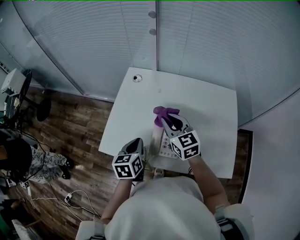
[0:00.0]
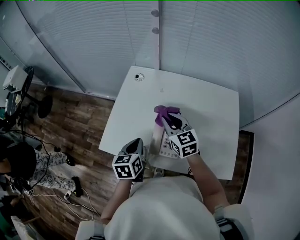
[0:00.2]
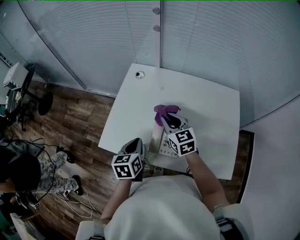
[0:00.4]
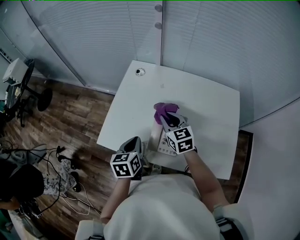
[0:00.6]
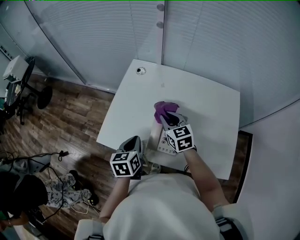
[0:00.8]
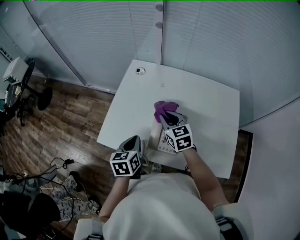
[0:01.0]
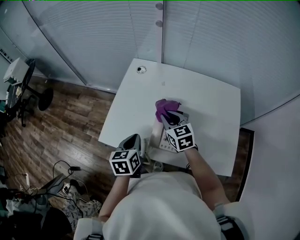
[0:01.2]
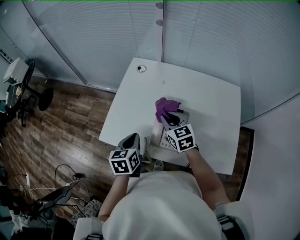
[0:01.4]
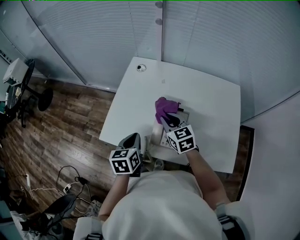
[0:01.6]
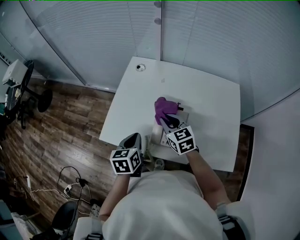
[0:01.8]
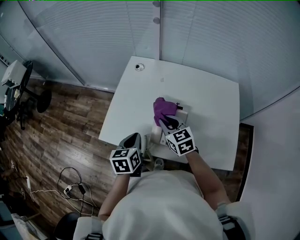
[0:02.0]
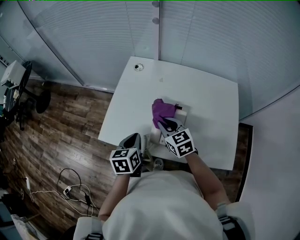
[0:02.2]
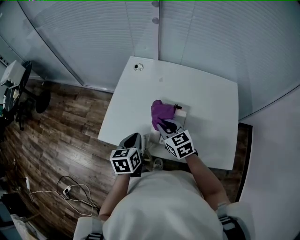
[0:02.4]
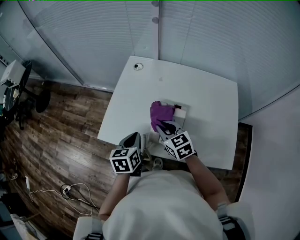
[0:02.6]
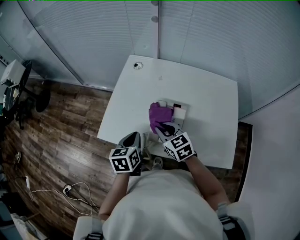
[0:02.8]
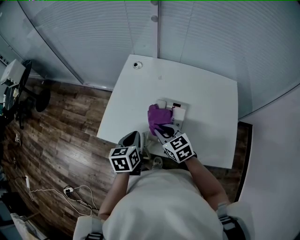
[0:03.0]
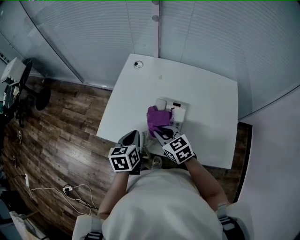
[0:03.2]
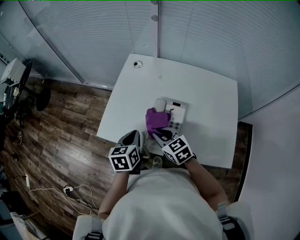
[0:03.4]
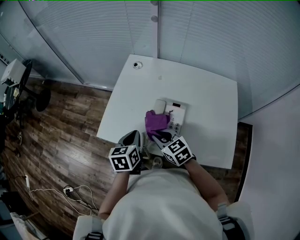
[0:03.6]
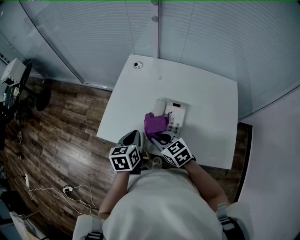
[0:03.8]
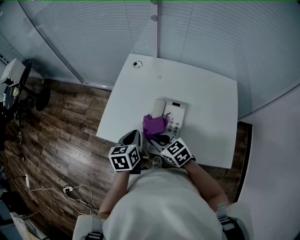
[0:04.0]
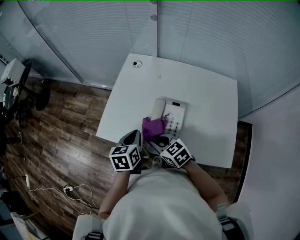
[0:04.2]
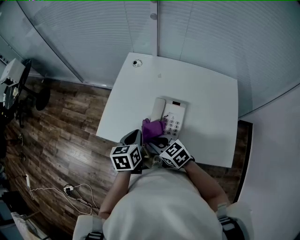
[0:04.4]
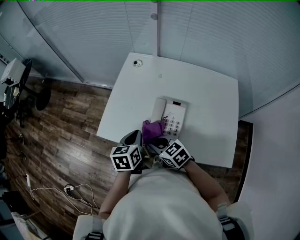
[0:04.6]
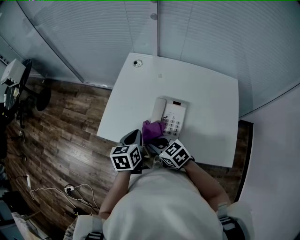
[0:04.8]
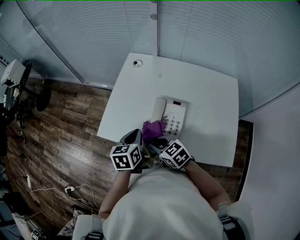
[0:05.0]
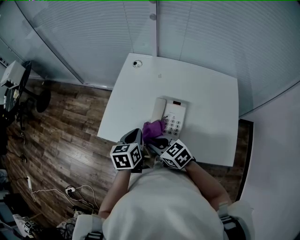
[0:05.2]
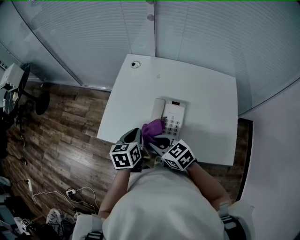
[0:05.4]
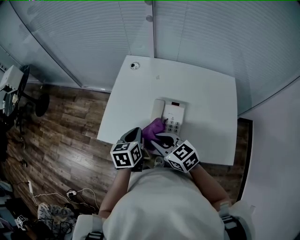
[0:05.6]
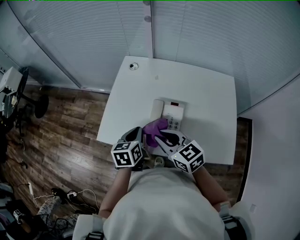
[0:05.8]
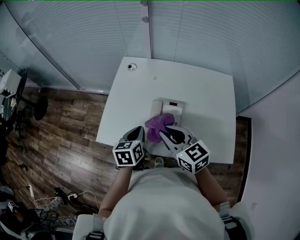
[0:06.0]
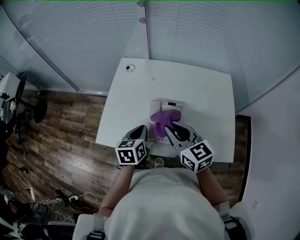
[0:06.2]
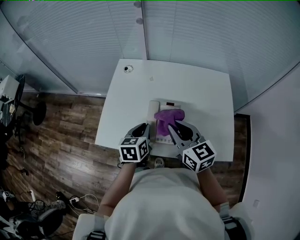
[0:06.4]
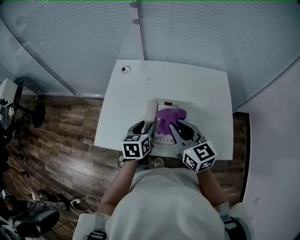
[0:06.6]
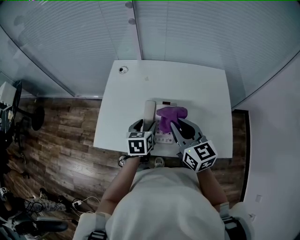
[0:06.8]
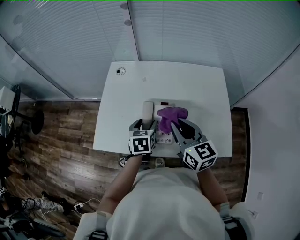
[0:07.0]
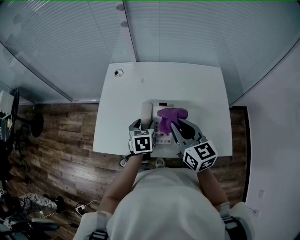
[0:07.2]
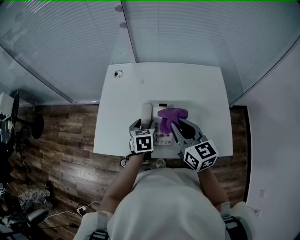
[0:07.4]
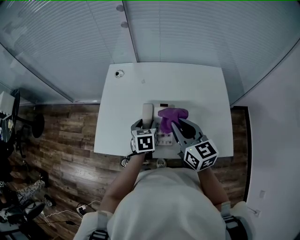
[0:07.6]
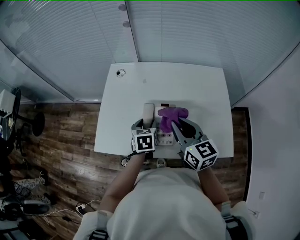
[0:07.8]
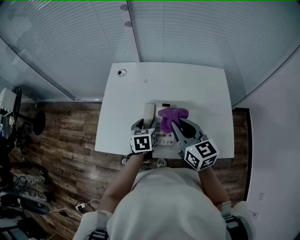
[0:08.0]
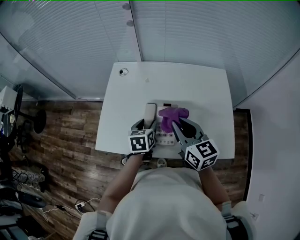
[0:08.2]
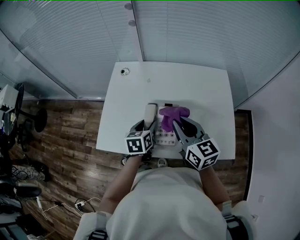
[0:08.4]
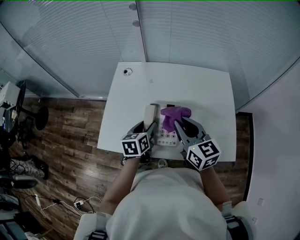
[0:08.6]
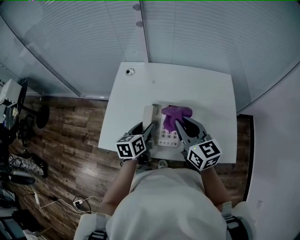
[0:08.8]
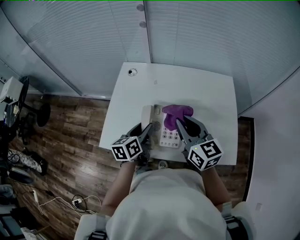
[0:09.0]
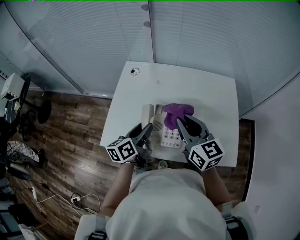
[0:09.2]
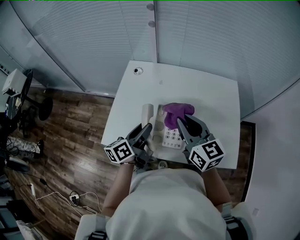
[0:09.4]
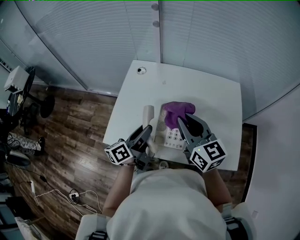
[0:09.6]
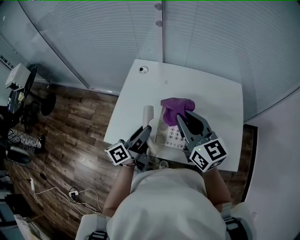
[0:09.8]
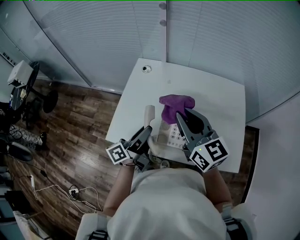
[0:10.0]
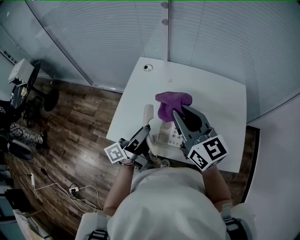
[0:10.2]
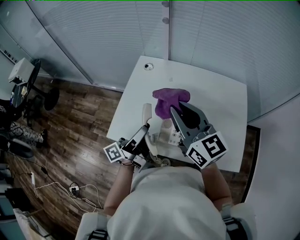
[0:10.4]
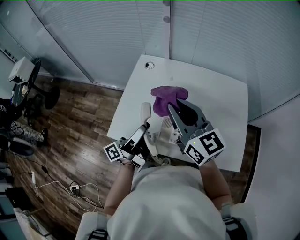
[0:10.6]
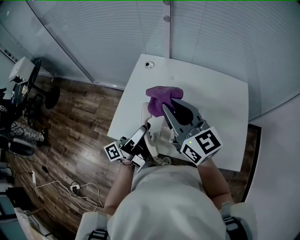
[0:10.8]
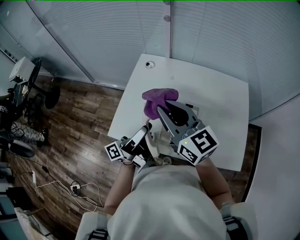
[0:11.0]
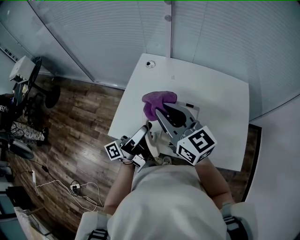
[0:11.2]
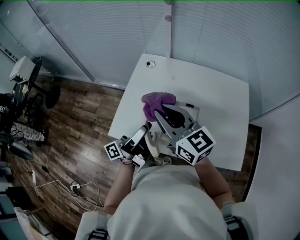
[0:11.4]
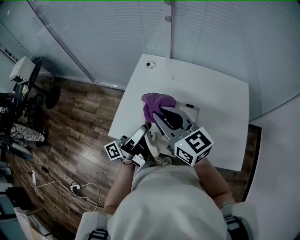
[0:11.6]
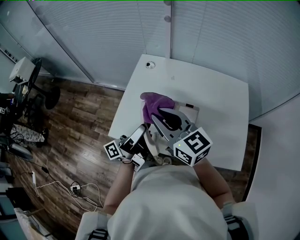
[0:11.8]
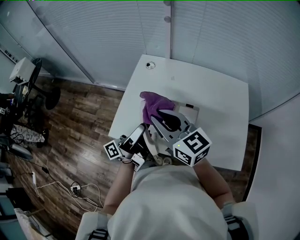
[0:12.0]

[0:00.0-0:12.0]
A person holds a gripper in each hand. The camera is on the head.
0:00.0 to 0:01.6: The right gripper heads downward, covering approximately 5 cm.
0:01.6 to 0:03.0: The right gripper goes roughly 5 cm backward.
0:03.0 to 0:04.4: The right gripper is displaced backward by some 5 cm.
0:04.4 to 0:06.0: The right gripper shifts roughly 15 cm upward and to the right, and swivels roughly 30 degrees.
0:06.0 to 0:07.6: The right gripper heads to the right, covering approximately 10 cm, and changes its angle by some 20 degrees. Meanwhile the left gripper is displaced to the right and forward by some 10 cm, and opens up.
0:07.6 to 0:09.0: The left gripper travels upward by approximately 5 cm, and rotates some 30 degrees.
0:09.0 to 0:10.4: The right gripper is displaced upward and to the left by some 10 cm; the left gripper is displaced upward by about 5 cm, and angles its fingers upward, by approximately 40 degrees.
0:10.4 to 0:12.0: The right gripper is displaced to the left by about 5 cm.

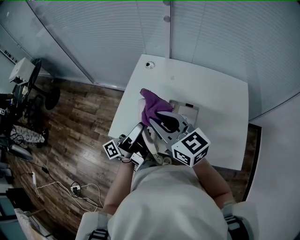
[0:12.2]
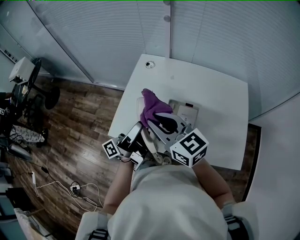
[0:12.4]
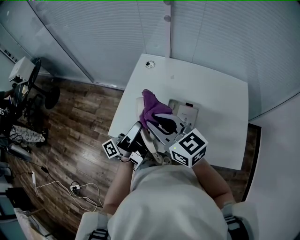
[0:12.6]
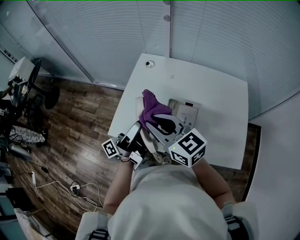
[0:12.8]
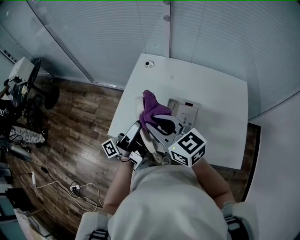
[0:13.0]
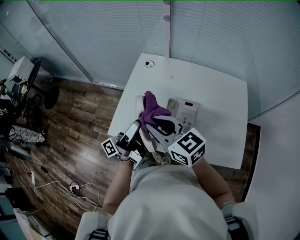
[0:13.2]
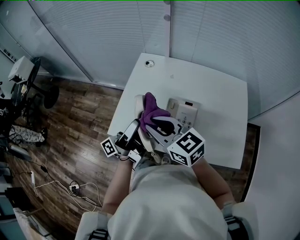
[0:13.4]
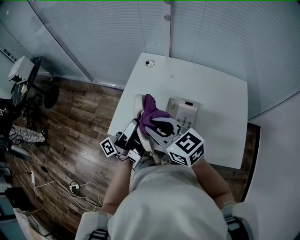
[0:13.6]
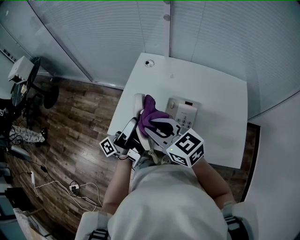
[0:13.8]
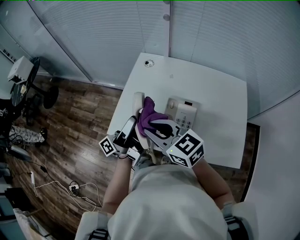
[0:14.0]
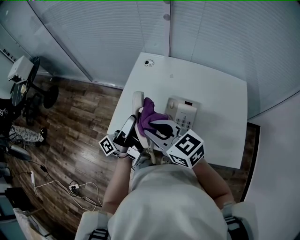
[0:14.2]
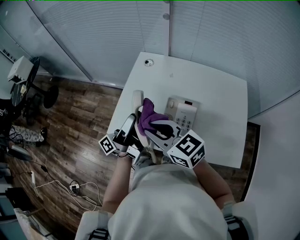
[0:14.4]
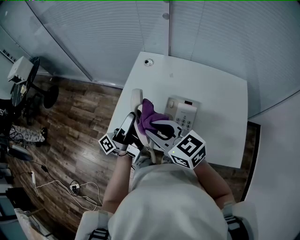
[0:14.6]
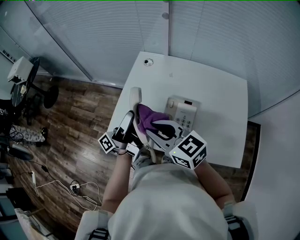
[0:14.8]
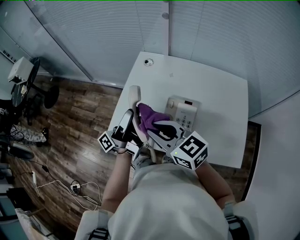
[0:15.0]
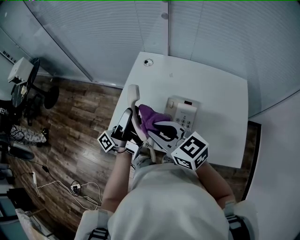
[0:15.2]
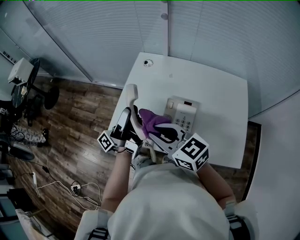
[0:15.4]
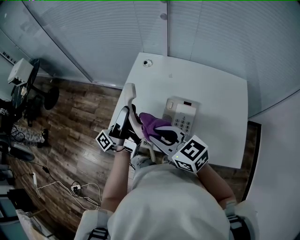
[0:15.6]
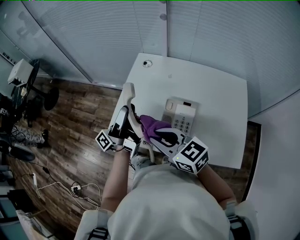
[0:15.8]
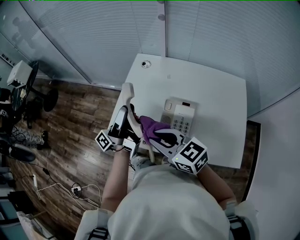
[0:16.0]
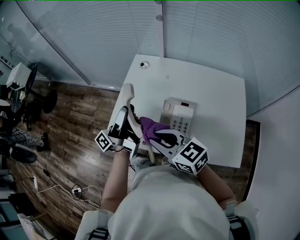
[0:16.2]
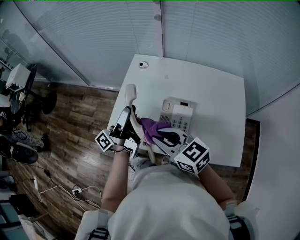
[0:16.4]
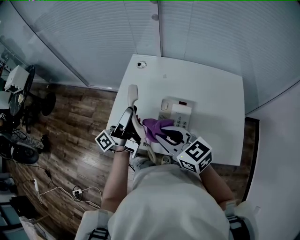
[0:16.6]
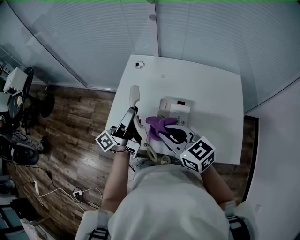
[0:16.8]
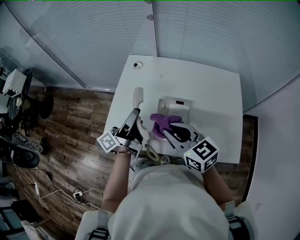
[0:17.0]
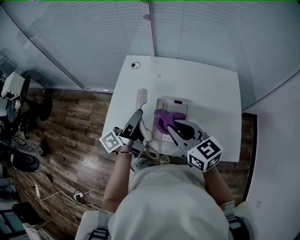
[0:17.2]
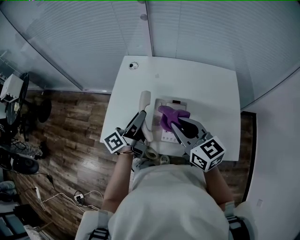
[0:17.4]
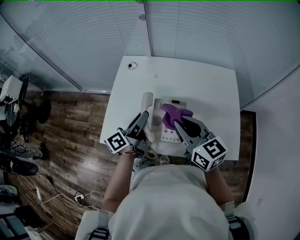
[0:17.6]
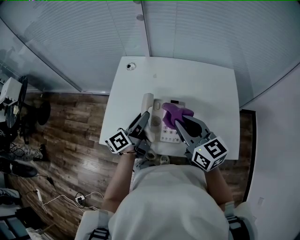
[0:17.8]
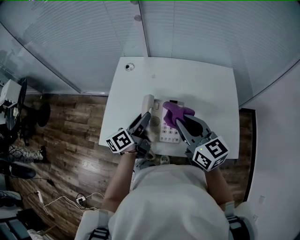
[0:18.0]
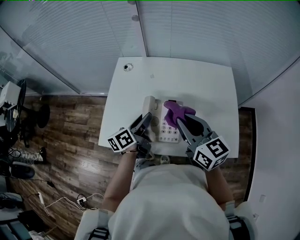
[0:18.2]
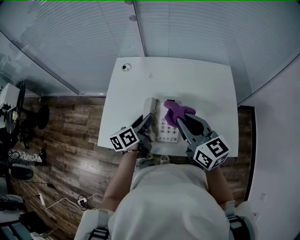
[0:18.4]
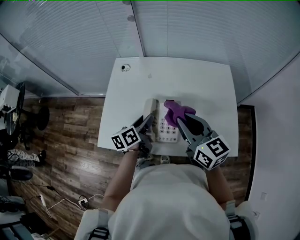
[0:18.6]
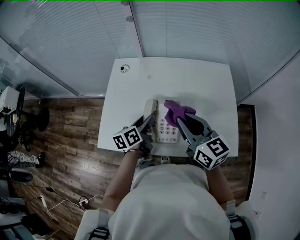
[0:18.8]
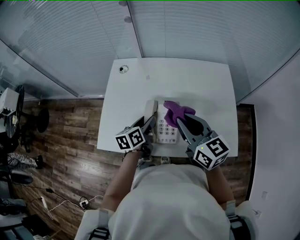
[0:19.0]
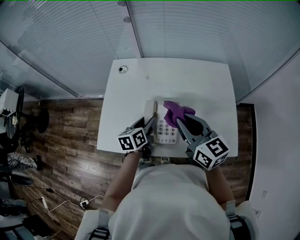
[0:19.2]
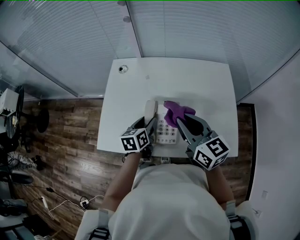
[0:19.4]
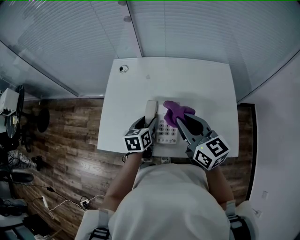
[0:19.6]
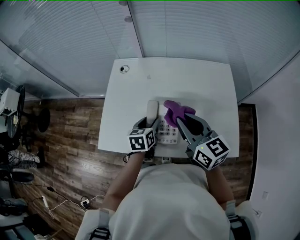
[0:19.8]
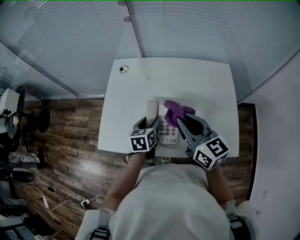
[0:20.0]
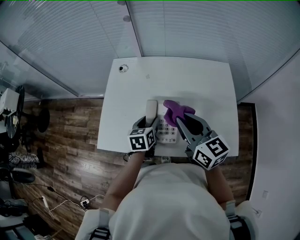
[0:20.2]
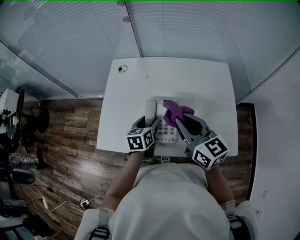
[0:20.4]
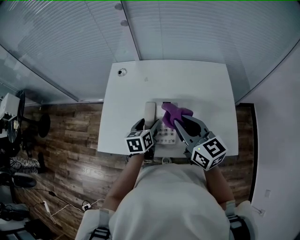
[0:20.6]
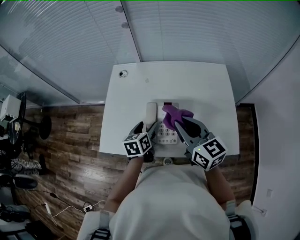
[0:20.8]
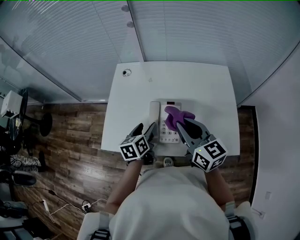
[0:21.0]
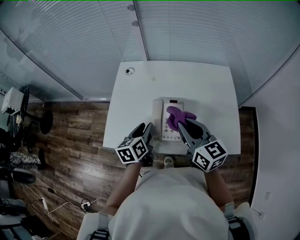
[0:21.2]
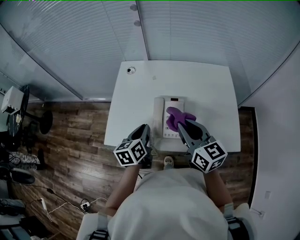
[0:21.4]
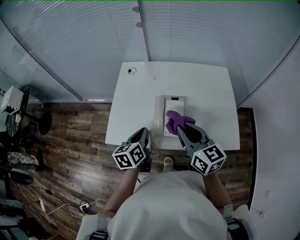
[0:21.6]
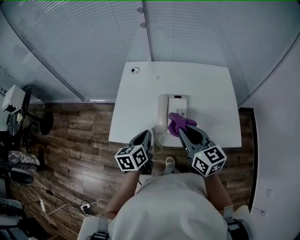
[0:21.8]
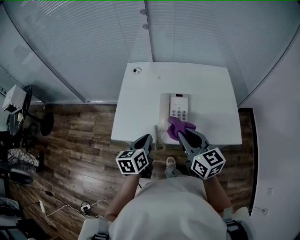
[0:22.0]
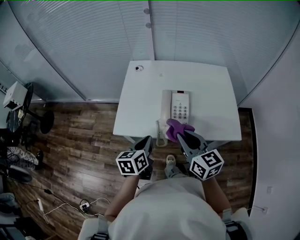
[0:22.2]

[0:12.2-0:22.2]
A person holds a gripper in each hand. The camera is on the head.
0:12.2 to 0:13.6: There are only small adjustments of the grippers.
0:13.6 to 0:16.4: There are only small adjustments of the grippers.
0:16.4 to 0:18.0: The right gripper travels to the right by some 15 cm, and turns by roughly 30 degrees, while the left gripper shifts approximately 15 cm to the right and downward, and tilts its fingers roughly 40 degrees downward.
0:18.0 to 0:19.4: The left gripper is displaced downward by roughly 5 cm, and turns by approximately 30 degrees.
0:19.4 to 0:20.8: The grippers make only small movements.
0:20.8 to 0:22.2: The right gripper is displaced backward and to the left by about 20 cm. The left gripper moves backward, to the left and upward, approximately 20 cm, and closes.

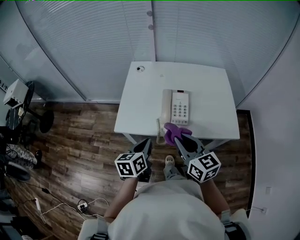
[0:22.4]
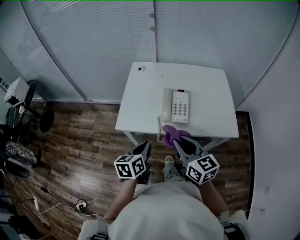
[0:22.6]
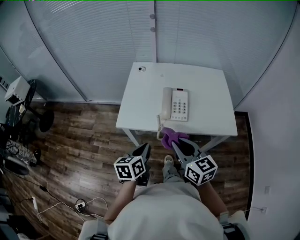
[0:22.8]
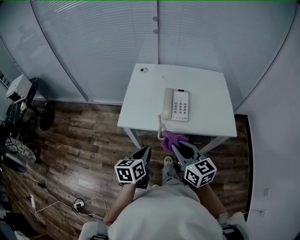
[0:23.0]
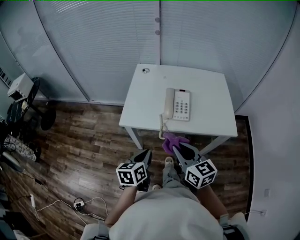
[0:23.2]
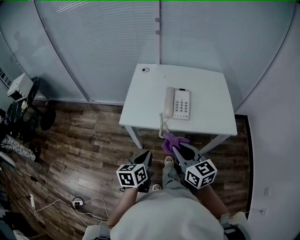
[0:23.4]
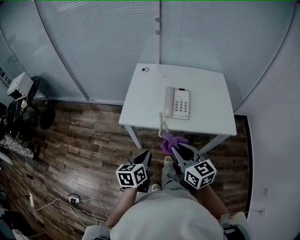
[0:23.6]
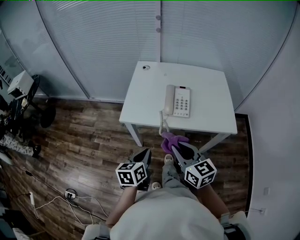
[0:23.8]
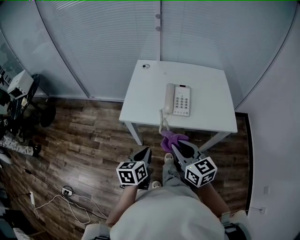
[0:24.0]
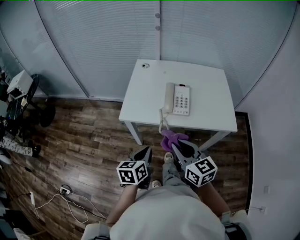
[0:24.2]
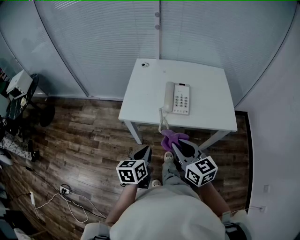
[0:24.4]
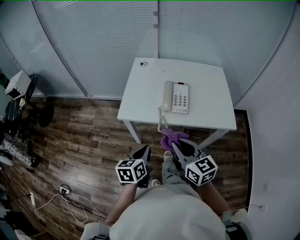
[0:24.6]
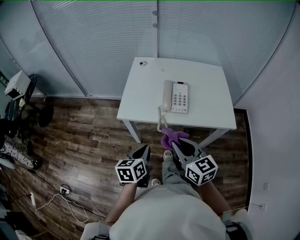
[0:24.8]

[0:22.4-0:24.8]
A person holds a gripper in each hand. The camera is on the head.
0:22.4 to 0:23.6: The two grippers go about 10 cm backward.
0:23.6 to 0:24.8: Both grippers stay about where they are.
